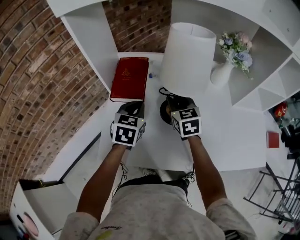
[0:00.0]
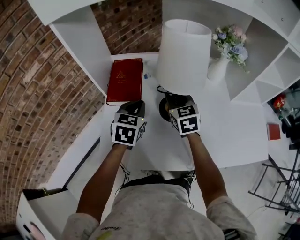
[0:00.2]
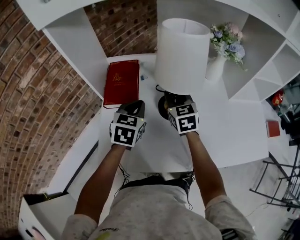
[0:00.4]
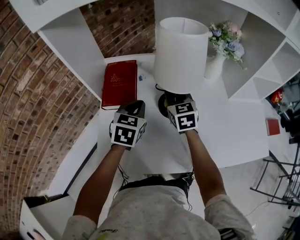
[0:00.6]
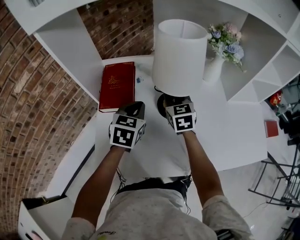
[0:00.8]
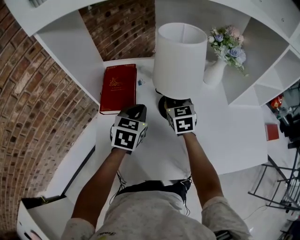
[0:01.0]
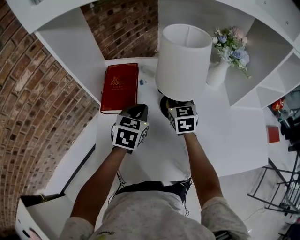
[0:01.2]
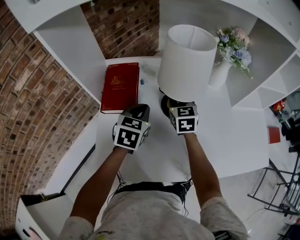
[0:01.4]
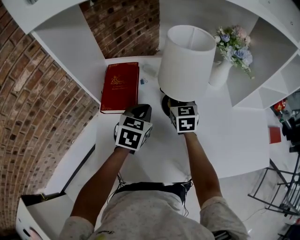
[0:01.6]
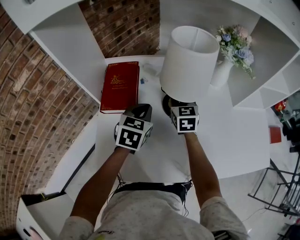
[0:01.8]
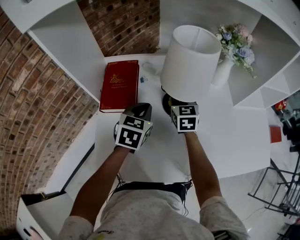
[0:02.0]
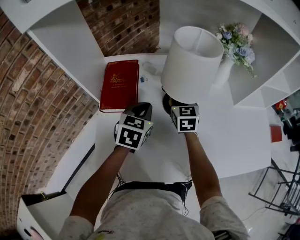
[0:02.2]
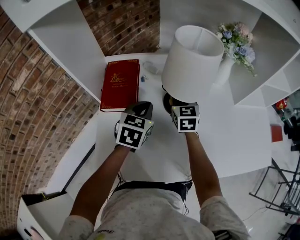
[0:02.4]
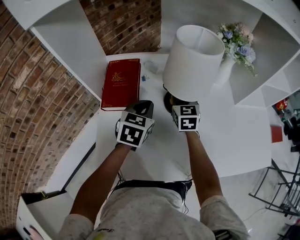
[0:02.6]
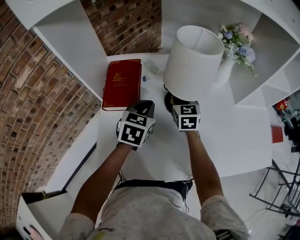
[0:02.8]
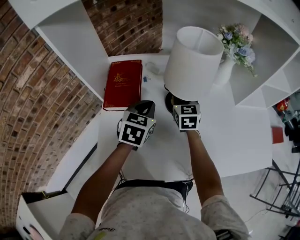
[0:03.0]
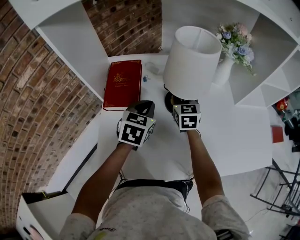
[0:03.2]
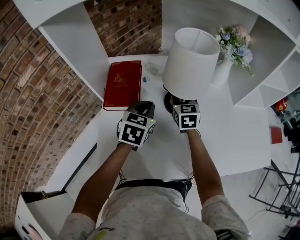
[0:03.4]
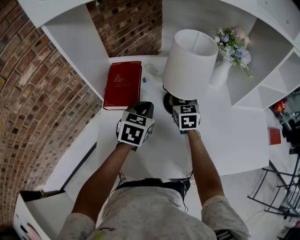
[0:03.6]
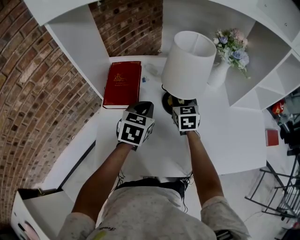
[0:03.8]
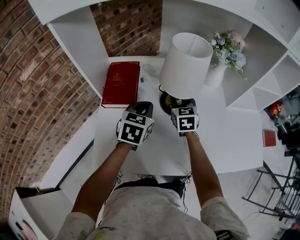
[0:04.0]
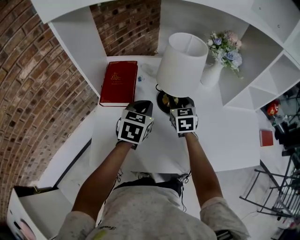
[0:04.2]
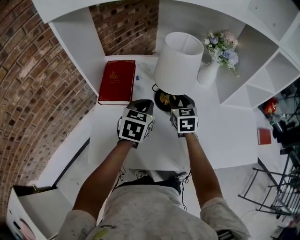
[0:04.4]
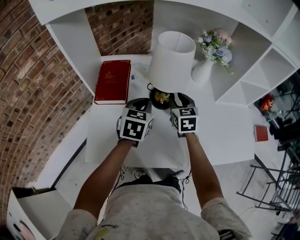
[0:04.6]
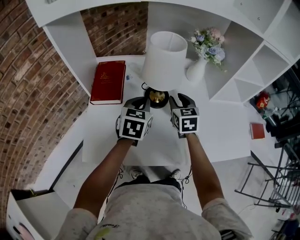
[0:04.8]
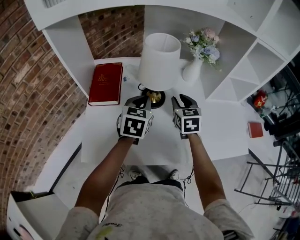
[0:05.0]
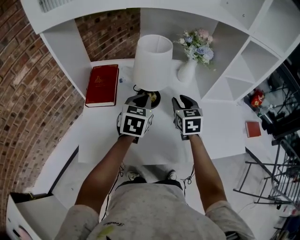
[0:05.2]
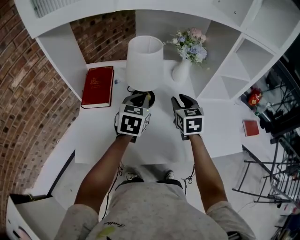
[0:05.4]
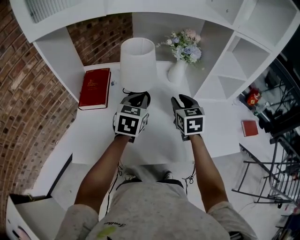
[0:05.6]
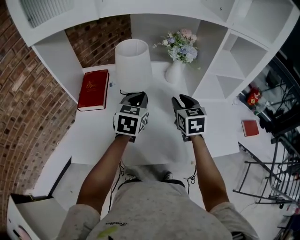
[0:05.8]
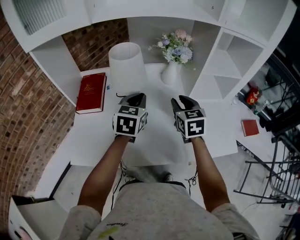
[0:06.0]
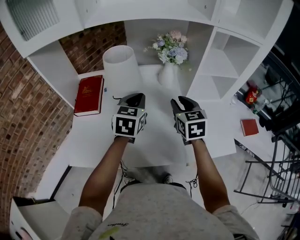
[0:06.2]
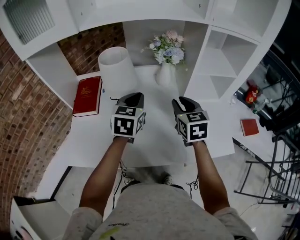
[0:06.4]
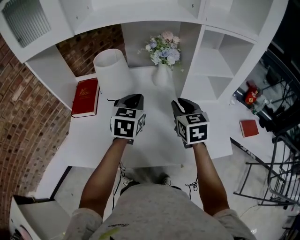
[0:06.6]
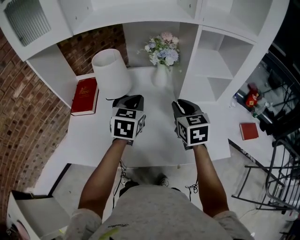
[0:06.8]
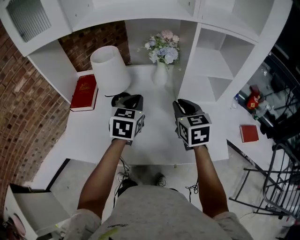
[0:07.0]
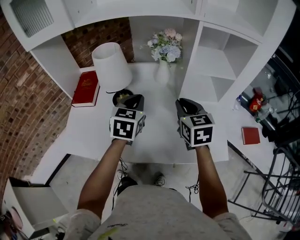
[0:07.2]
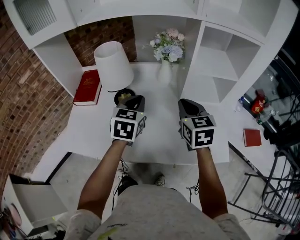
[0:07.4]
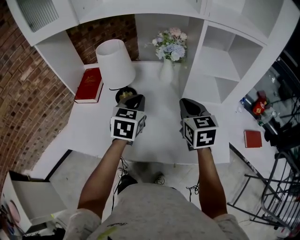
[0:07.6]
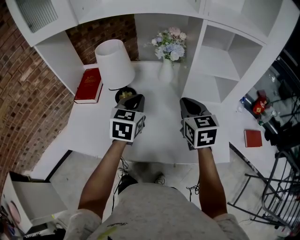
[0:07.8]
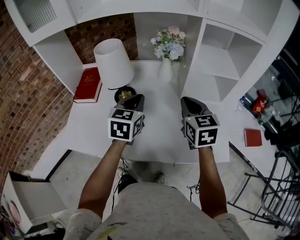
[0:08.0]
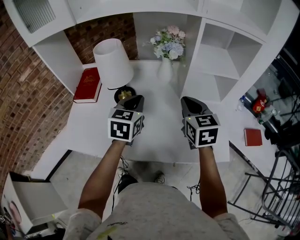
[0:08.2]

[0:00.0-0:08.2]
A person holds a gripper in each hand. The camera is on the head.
0:00.0 to 0:01.6: The right gripper goes about 10 cm forward. Meanwhile the left gripper heads to the right, covering about 5 cm.
0:01.6 to 0:03.2: Both grippers stay put.
0:03.2 to 0:05.0: The right gripper travels to the right, backward and upward by some 15 cm, while the left gripper travels to the right and upward by some 10 cm.
0:05.0 to 0:06.6: Both grippers travel together to the right and upward, about 20 cm.
0:06.6 to 0:08.2: There are only small adjustments of the grippers.

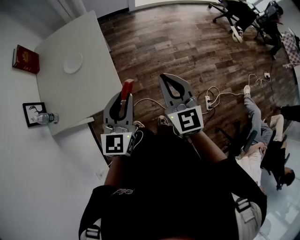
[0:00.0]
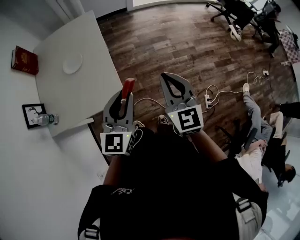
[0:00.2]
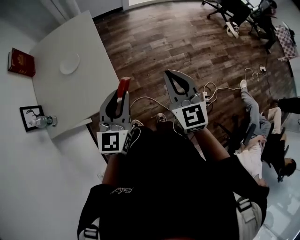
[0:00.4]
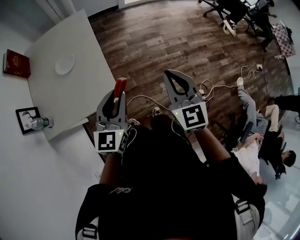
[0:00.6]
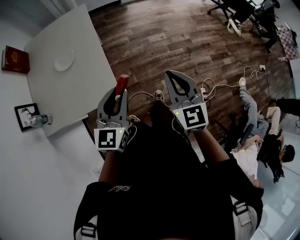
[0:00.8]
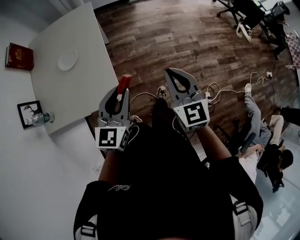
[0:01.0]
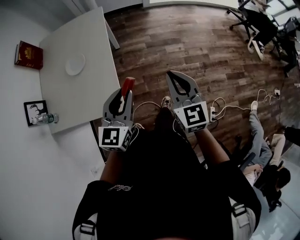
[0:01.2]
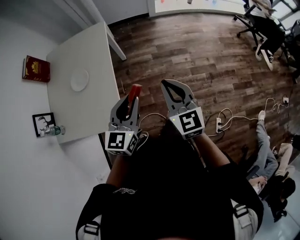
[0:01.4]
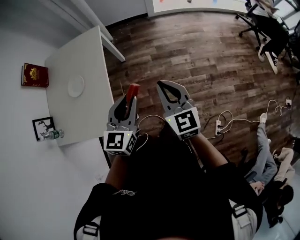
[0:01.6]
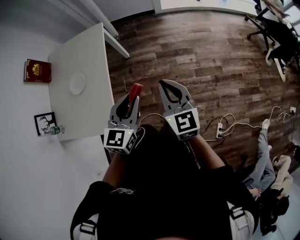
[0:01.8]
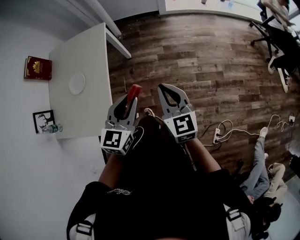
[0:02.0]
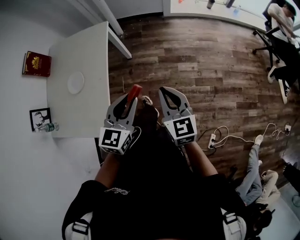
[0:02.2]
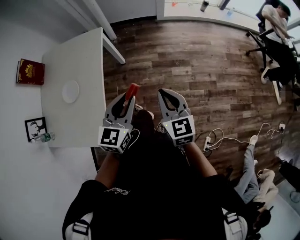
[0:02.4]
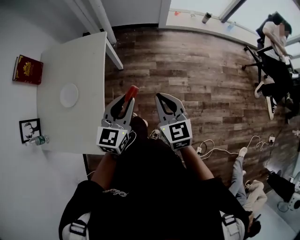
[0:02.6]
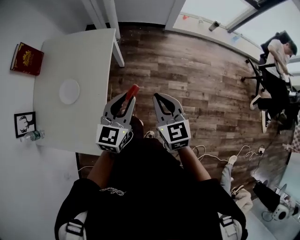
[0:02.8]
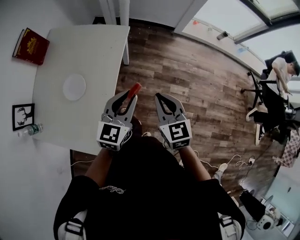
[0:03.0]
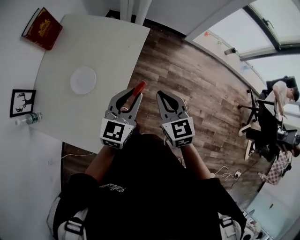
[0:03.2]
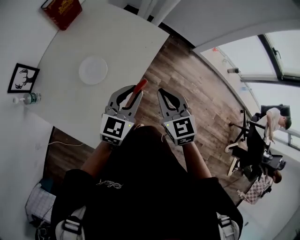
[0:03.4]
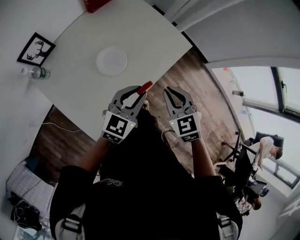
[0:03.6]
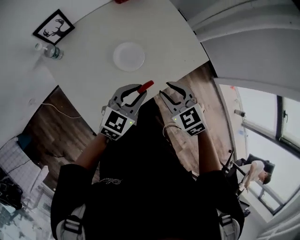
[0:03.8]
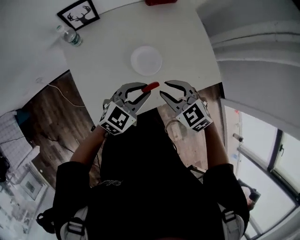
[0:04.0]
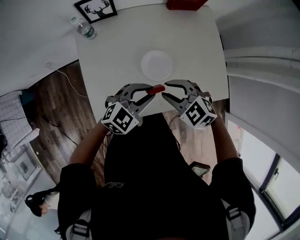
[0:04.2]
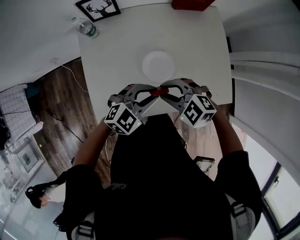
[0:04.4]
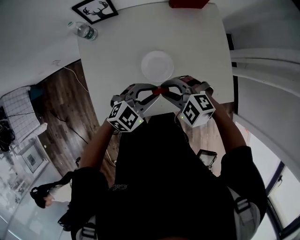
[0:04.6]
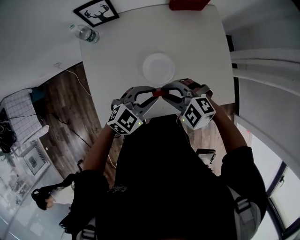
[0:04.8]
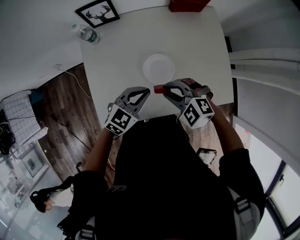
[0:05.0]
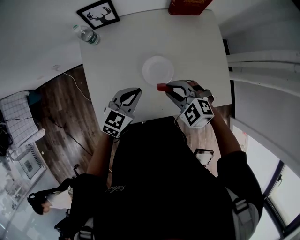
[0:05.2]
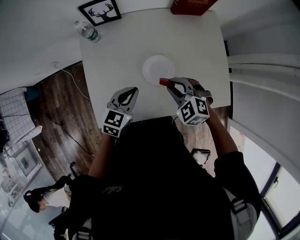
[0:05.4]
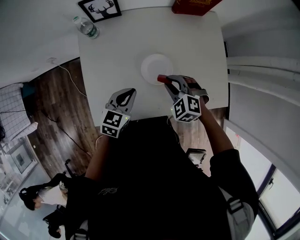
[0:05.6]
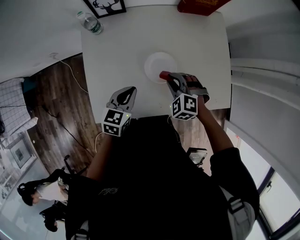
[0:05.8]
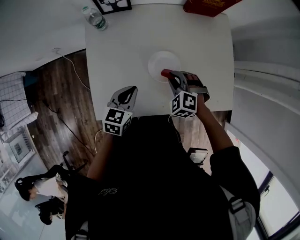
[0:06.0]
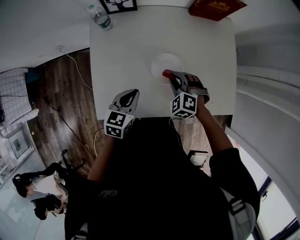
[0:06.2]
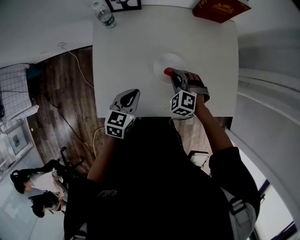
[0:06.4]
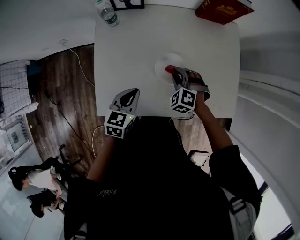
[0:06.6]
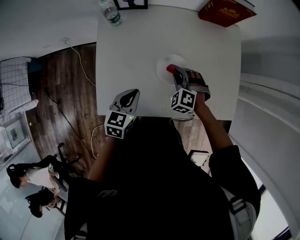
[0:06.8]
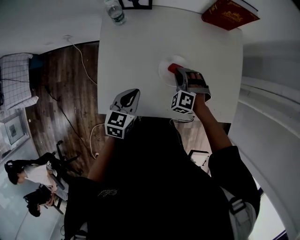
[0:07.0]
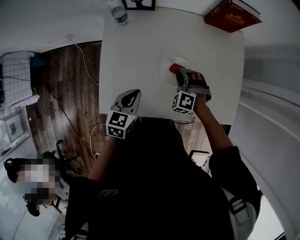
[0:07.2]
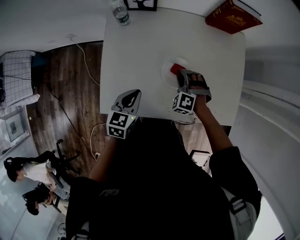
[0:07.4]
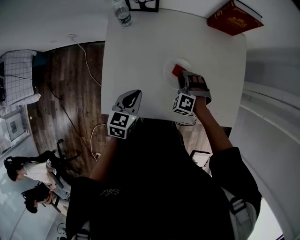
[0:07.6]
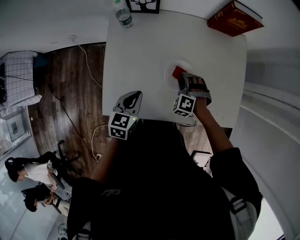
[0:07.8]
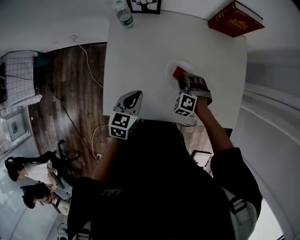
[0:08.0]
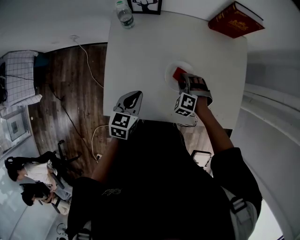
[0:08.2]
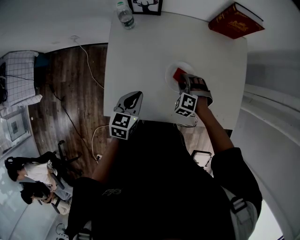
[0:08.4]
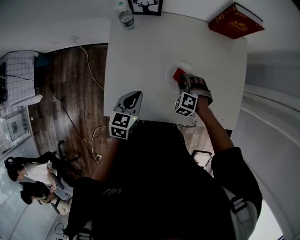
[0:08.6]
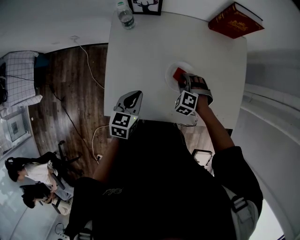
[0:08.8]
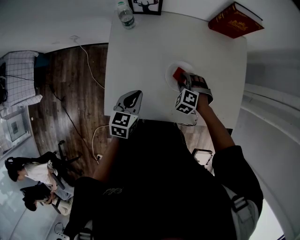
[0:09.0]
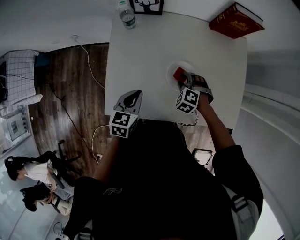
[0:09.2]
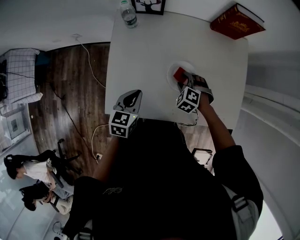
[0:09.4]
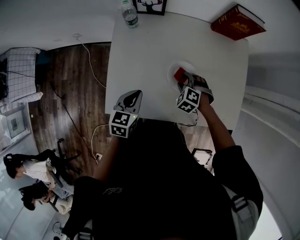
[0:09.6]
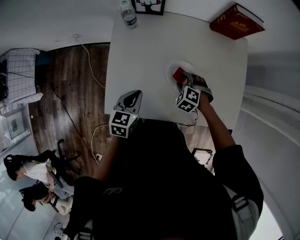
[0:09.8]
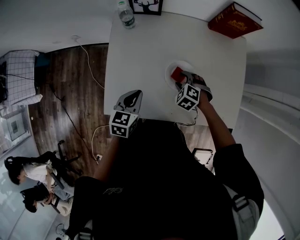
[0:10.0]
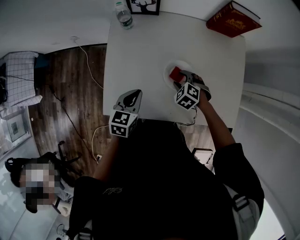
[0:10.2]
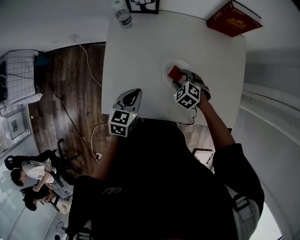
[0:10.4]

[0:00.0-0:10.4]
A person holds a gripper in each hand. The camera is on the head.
0:00.0 to 0:01.4: The left gripper is displaced forward and to the right by about 15 cm, while the right gripper moves forward, approximately 15 cm.
0:01.4 to 0:03.0: The two grippers go roughly 25 cm forward. The right gripper turns by about 20 degrees.
0:03.0 to 0:04.4: The left gripper shifts by roughly 25 cm, and turns by about 30 degrees. Meanwhile the right gripper moves roughly 35 cm, turns by roughly 120 degrees, and opens its fingers.
0:04.4 to 0:06.0: The right gripper shifts roughly 10 cm downward, and turns by some 30 degrees; the left gripper ends up about 10 cm from where it was, and twists some 40 degrees counterclockwise, seen from behind.
0:06.0 to 0:07.4: The right gripper ends up approximately 5 cm from where it was, and changes its angle by approximately 20 degrees.
0:07.4 to 0:09.0: The right gripper opens its fingers.
0:09.0 to 0:10.4: The right gripper swivels about 20 degrees.

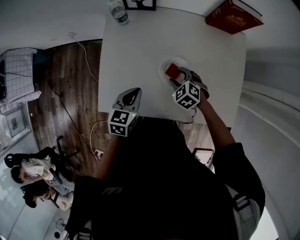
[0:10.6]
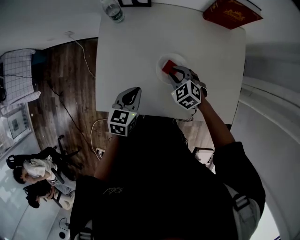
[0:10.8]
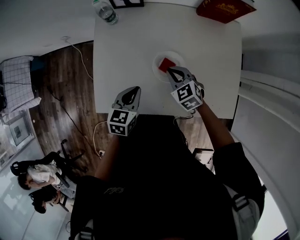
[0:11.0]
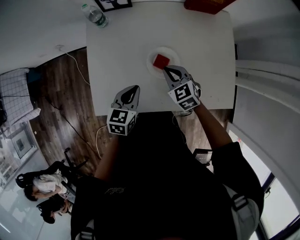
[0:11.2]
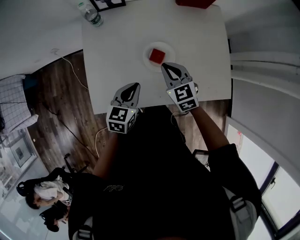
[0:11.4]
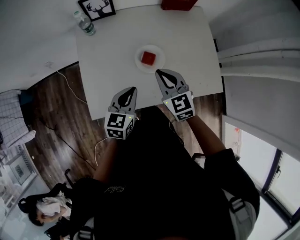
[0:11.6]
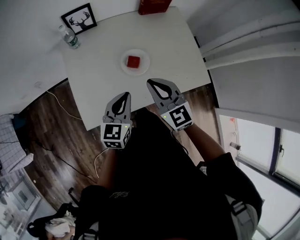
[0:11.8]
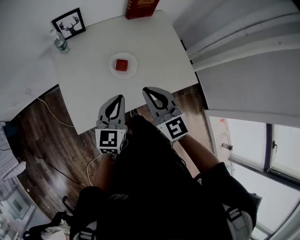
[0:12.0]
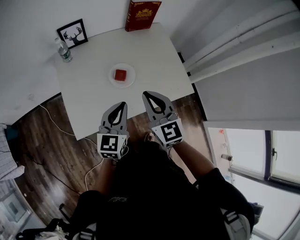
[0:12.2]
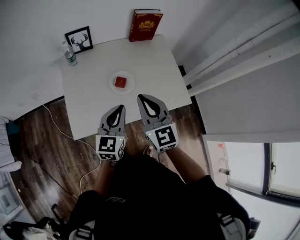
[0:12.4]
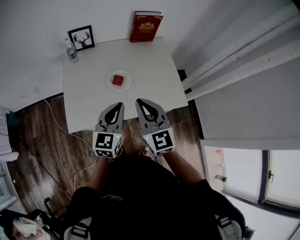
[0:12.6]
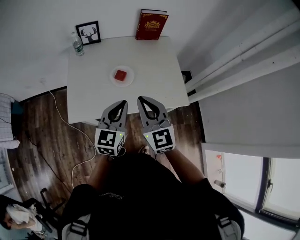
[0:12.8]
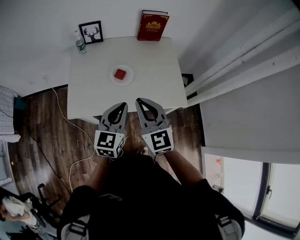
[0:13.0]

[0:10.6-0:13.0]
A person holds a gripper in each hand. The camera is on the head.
0:10.6 to 0:11.8: The right gripper heads upward and backward, covering some 25 cm, points its fingers roughly 40 degrees further upward, and closes, while the left gripper is displaced upward and backward by about 10 cm, and rotates approximately 30 degrees.
0:11.8 to 0:13.0: The right gripper goes some 20 cm backward, to the right and upward, while the left gripper is displaced to the right, backward and upward by some 20 cm.

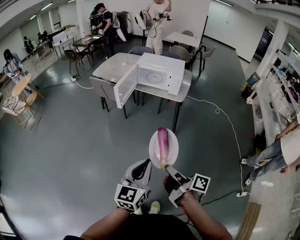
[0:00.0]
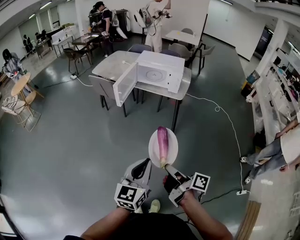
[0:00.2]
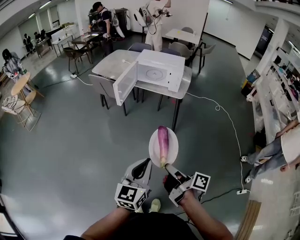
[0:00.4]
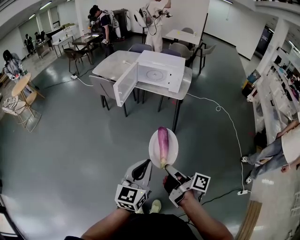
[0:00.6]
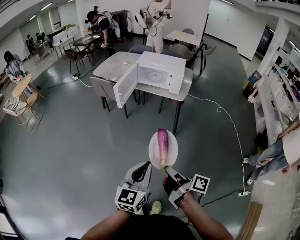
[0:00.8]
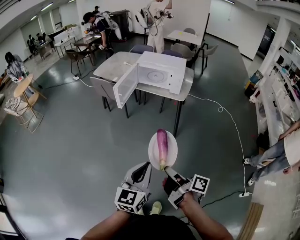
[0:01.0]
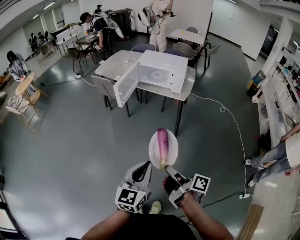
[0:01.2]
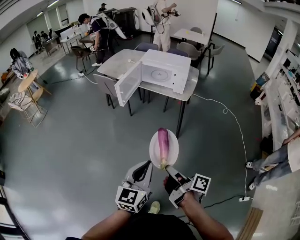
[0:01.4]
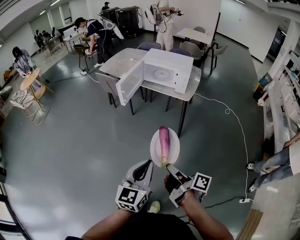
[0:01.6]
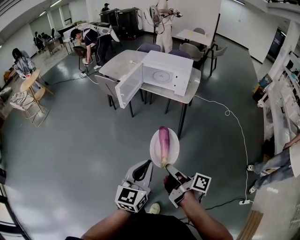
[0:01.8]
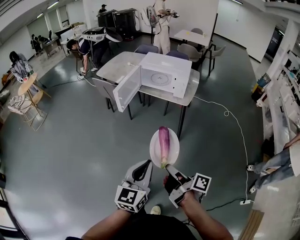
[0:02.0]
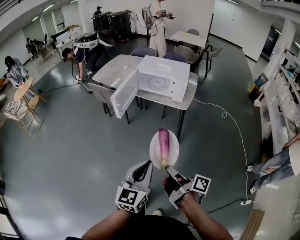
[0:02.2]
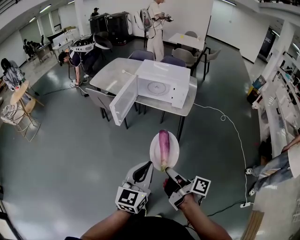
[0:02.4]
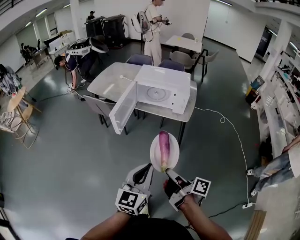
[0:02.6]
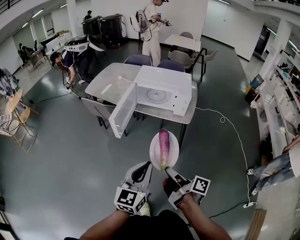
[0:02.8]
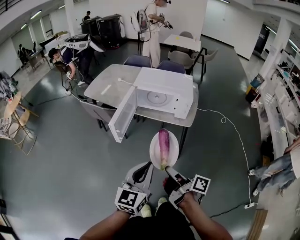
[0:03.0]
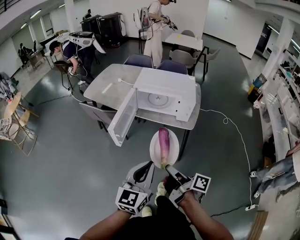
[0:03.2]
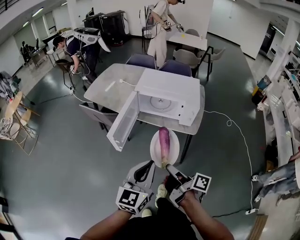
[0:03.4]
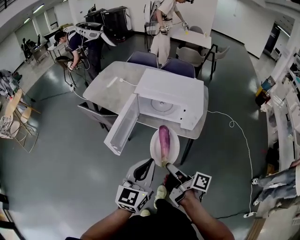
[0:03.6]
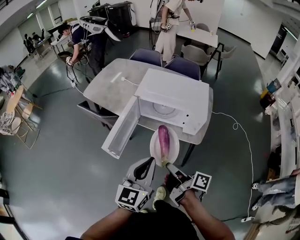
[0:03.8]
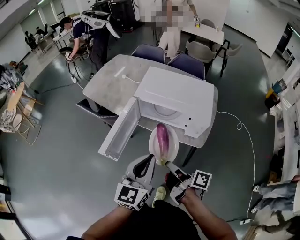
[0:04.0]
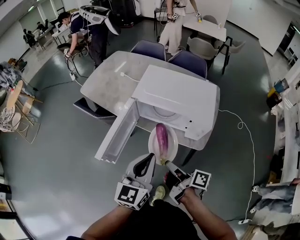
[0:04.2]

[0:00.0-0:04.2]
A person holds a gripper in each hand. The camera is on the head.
0:00.0 to 0:01.4: There are only small adjustments of the grippers.
0:01.4 to 0:02.8: The grippers both shift forward by roughly 25 cm.
0:02.8 to 0:04.2: The grippers both shift forward by about 35 cm.
